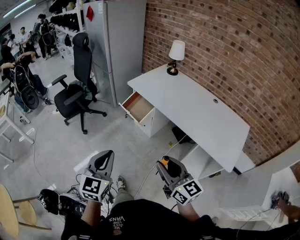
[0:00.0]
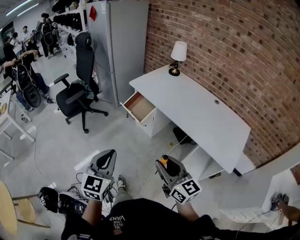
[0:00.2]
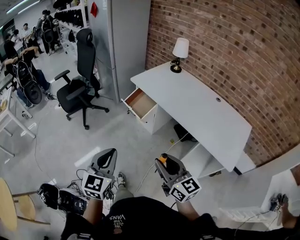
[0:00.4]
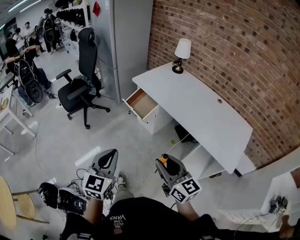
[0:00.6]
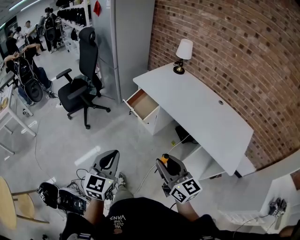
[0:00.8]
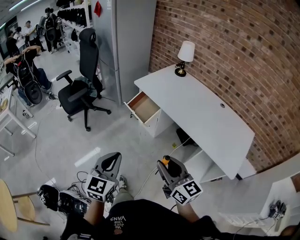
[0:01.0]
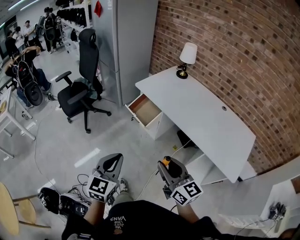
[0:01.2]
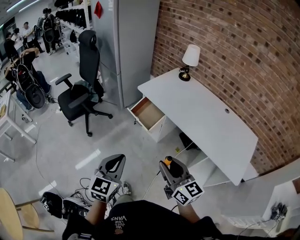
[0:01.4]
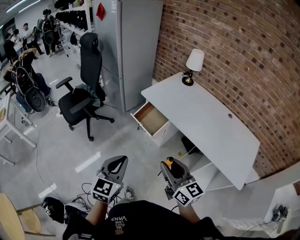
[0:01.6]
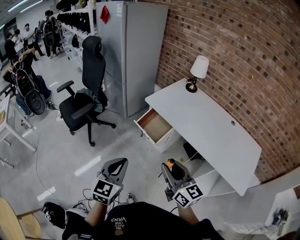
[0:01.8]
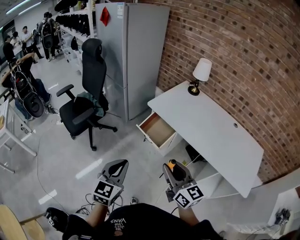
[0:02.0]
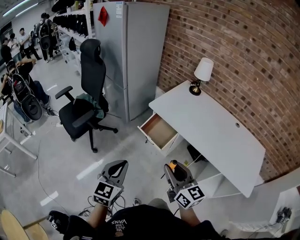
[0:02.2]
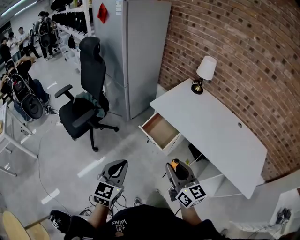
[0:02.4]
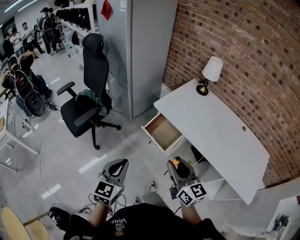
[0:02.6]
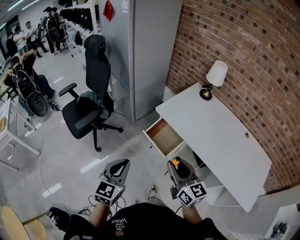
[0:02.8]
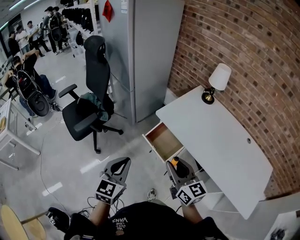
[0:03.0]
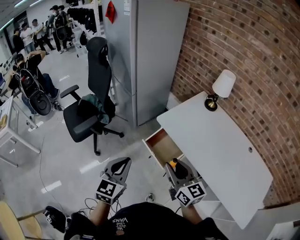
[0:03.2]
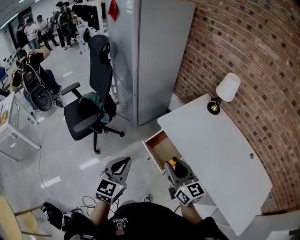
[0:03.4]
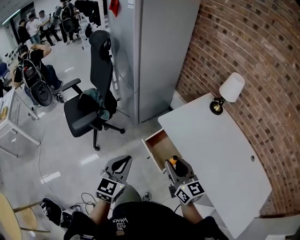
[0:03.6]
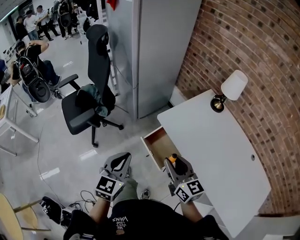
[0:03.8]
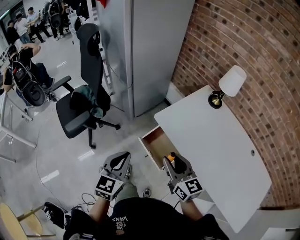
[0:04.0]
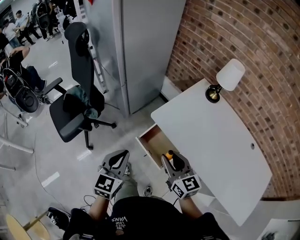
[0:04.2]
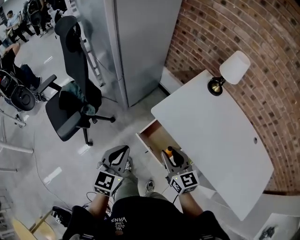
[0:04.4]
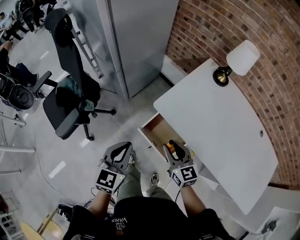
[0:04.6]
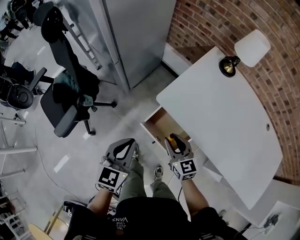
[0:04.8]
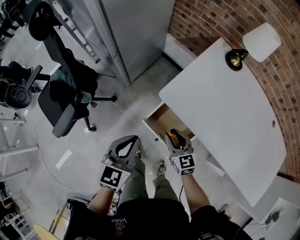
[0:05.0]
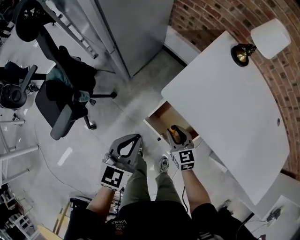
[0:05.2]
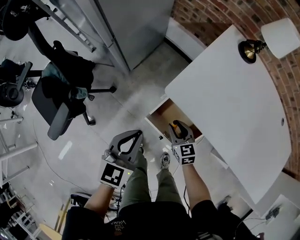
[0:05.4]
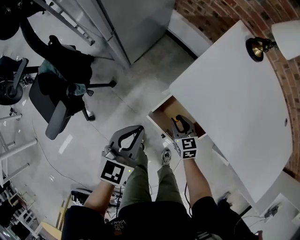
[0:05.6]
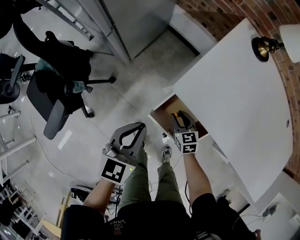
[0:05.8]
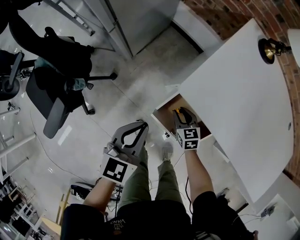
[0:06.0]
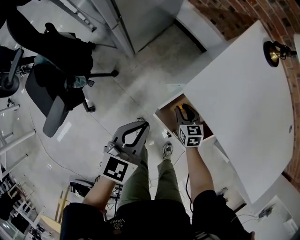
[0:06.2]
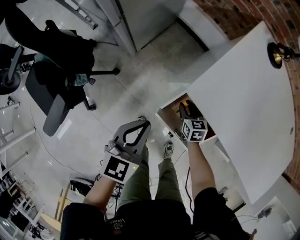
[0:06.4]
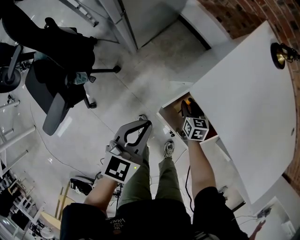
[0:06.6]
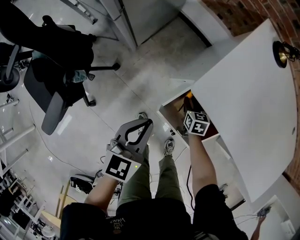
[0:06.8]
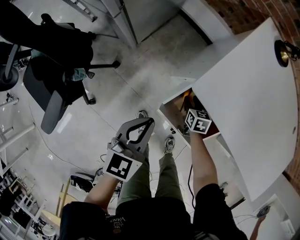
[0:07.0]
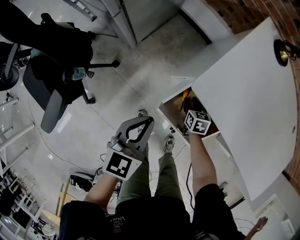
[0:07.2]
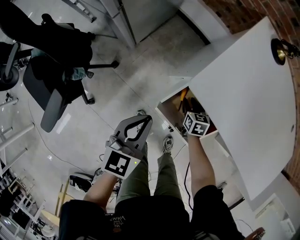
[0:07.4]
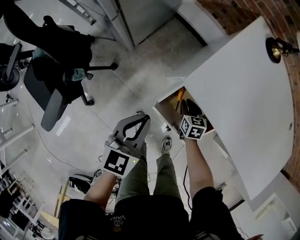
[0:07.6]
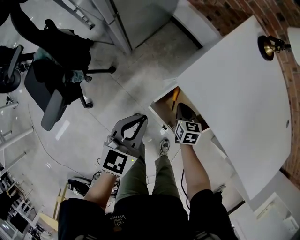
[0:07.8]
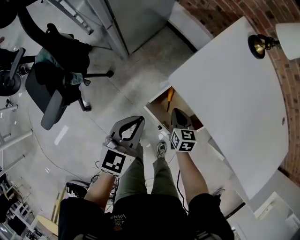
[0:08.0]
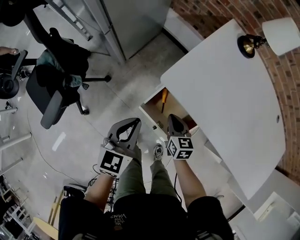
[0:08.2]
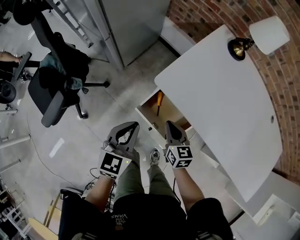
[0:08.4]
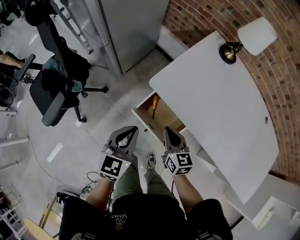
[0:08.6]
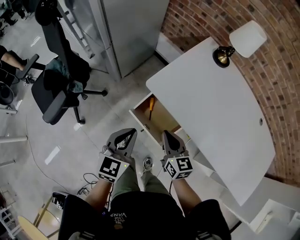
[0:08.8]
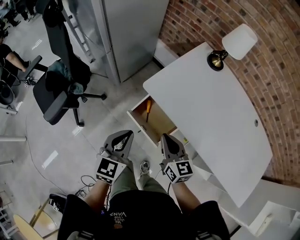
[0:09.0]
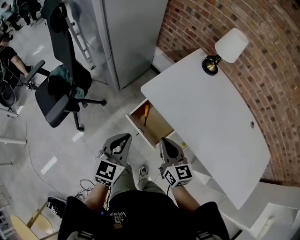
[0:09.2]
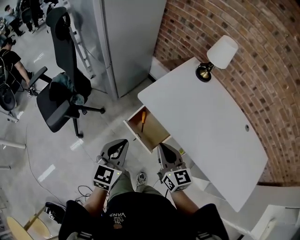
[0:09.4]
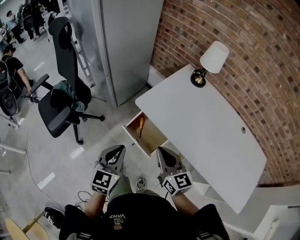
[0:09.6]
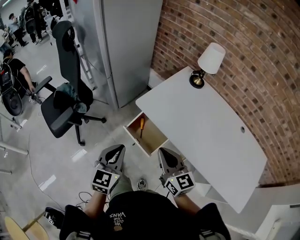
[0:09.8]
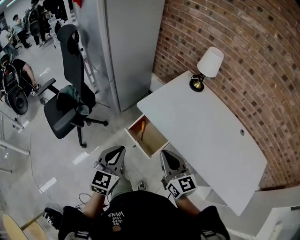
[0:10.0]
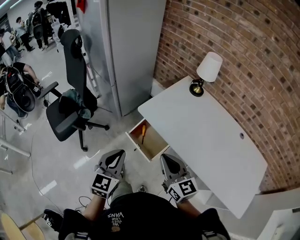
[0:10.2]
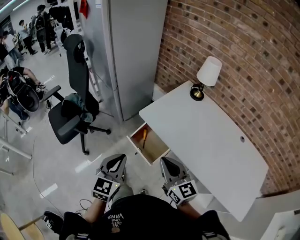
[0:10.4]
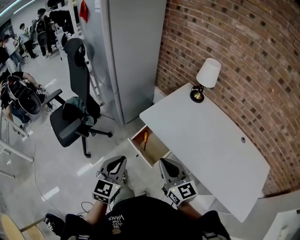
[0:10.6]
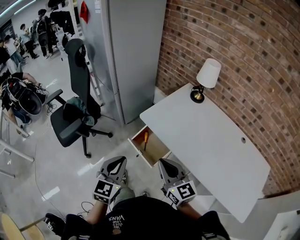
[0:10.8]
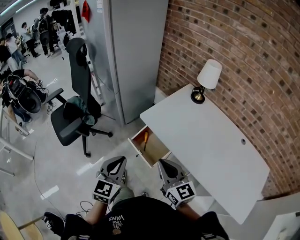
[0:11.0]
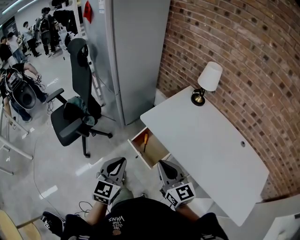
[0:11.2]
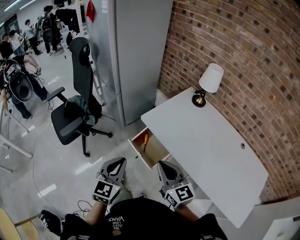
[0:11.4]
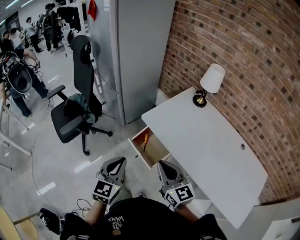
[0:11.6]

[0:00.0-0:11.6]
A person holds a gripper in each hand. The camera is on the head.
0:00.0 to 0:01.4: Both grippers move forward, about 10 cm.
0:01.4 to 0:02.8: The left gripper travels forward and to the left by approximately 25 cm; the right gripper goes some 25 cm forward.
0:02.8 to 0:04.4: The left gripper heads forward, covering approximately 25 cm. The right gripper goes about 30 cm forward and downward.
0:04.4 to 0:05.8: The left gripper goes about 25 cm downward and forward, while the right gripper goes roughly 35 cm downward, and swivels approximately 30 degrees.
0:05.8 to 0:07.2: Both grippers travel together downward, roughly 5 cm. The right gripper changes its angle by approximately 20 degrees.
0:07.2 to 0:08.8: The left gripper is displaced upward, backward and to the right by roughly 20 cm. The right gripper is displaced upward and backward by approximately 35 cm, points its fingers about 30 degrees further upward, and closes up.
0:08.8 to 0:10.2: The right gripper travels upward and backward by roughly 25 cm, and swivels about 20 degrees; the left gripper moves backward and upward, about 20 cm.
0:10.2 to 0:11.6: The grippers stay close to where they were, moving slightly.

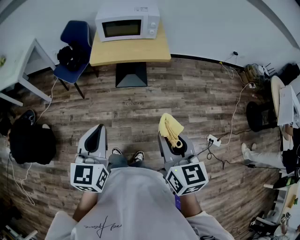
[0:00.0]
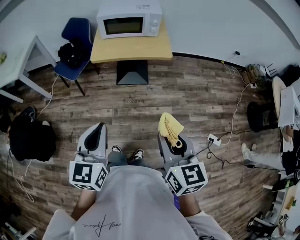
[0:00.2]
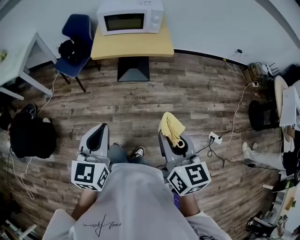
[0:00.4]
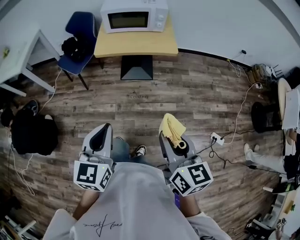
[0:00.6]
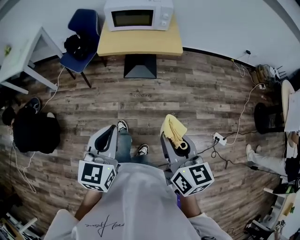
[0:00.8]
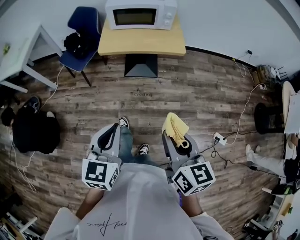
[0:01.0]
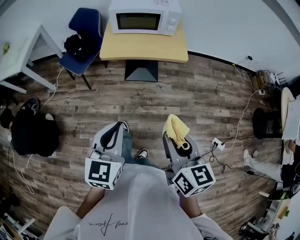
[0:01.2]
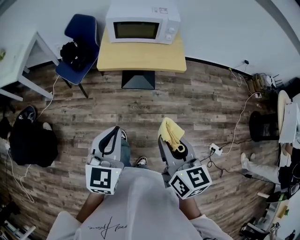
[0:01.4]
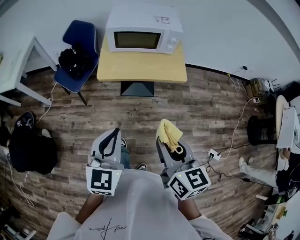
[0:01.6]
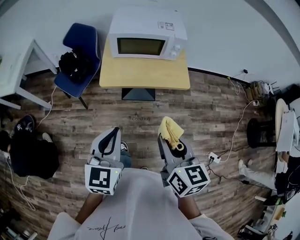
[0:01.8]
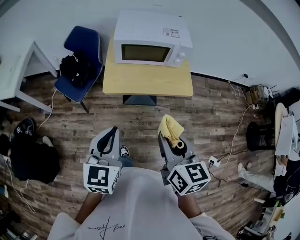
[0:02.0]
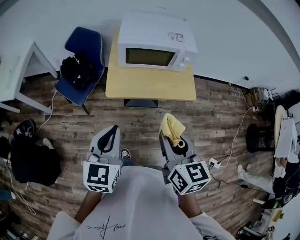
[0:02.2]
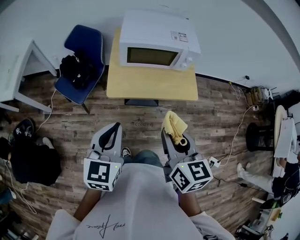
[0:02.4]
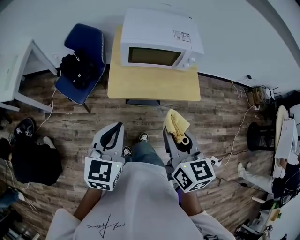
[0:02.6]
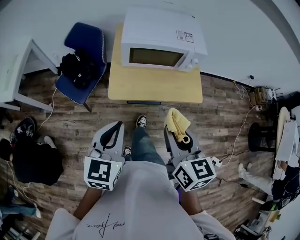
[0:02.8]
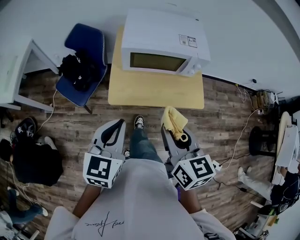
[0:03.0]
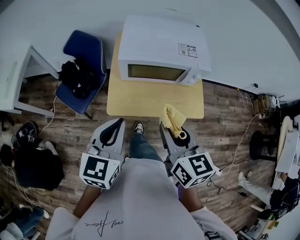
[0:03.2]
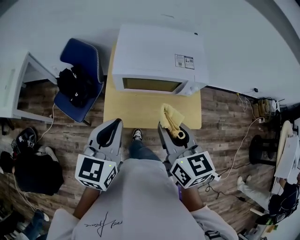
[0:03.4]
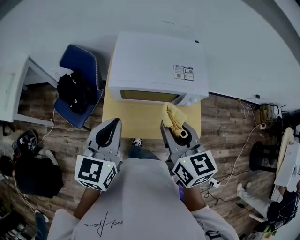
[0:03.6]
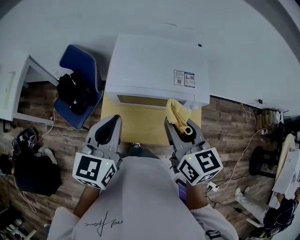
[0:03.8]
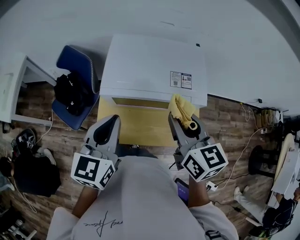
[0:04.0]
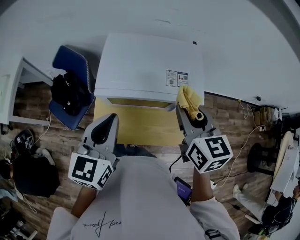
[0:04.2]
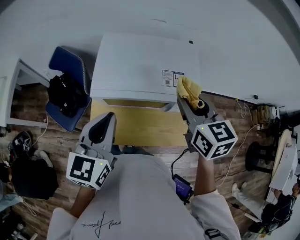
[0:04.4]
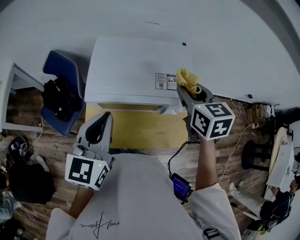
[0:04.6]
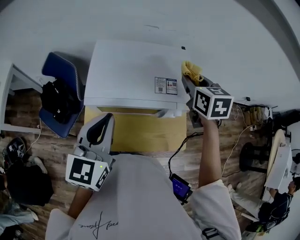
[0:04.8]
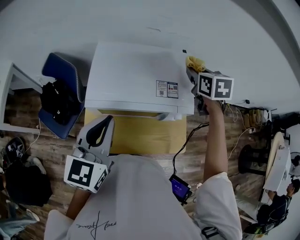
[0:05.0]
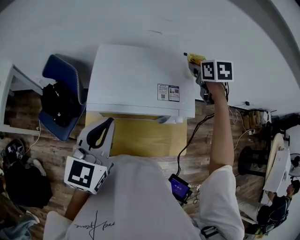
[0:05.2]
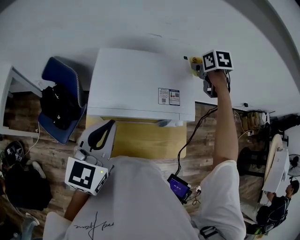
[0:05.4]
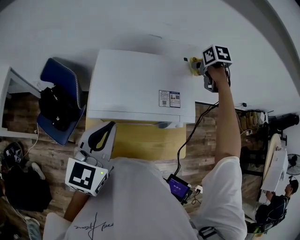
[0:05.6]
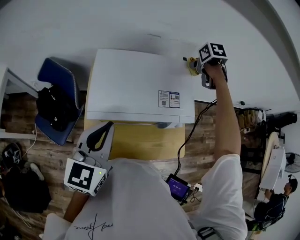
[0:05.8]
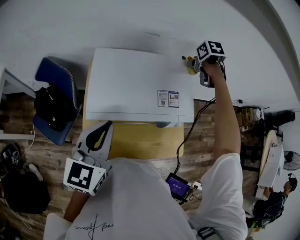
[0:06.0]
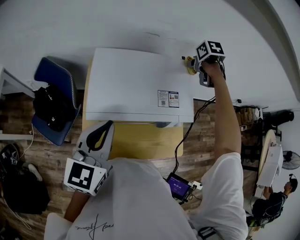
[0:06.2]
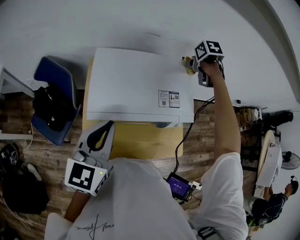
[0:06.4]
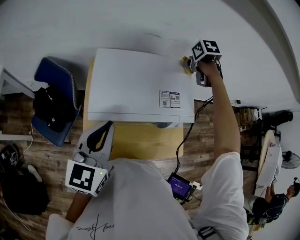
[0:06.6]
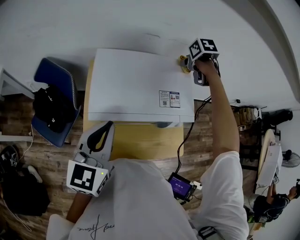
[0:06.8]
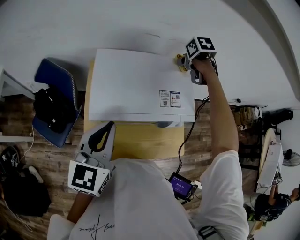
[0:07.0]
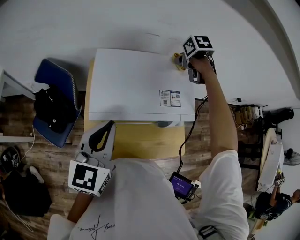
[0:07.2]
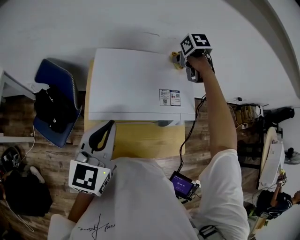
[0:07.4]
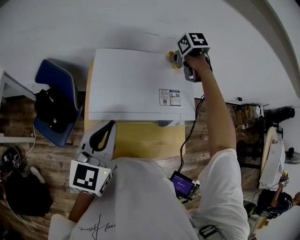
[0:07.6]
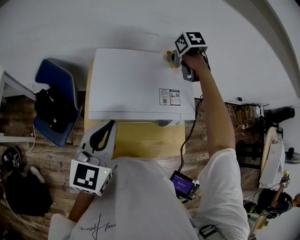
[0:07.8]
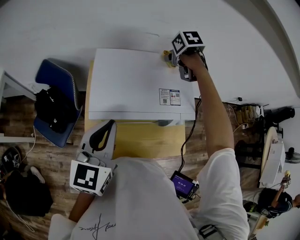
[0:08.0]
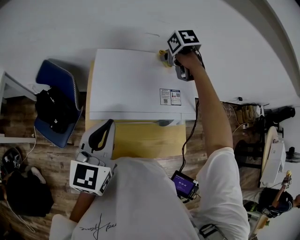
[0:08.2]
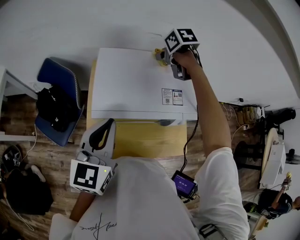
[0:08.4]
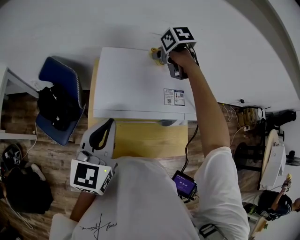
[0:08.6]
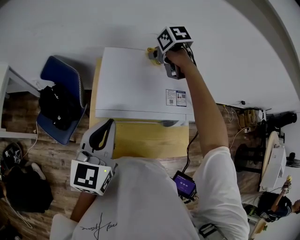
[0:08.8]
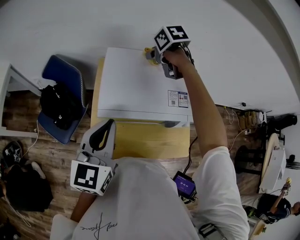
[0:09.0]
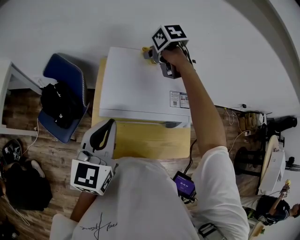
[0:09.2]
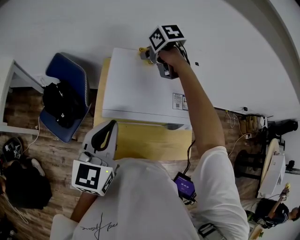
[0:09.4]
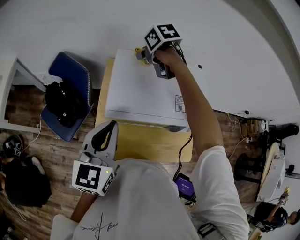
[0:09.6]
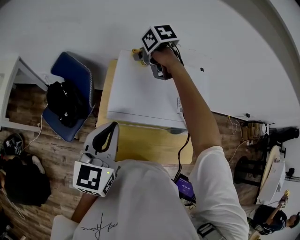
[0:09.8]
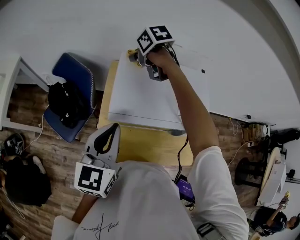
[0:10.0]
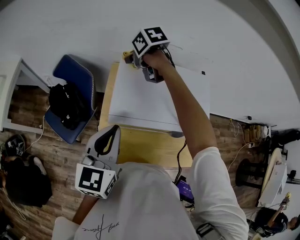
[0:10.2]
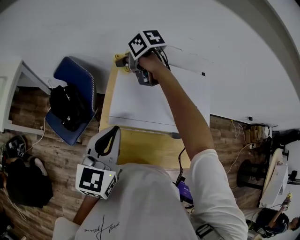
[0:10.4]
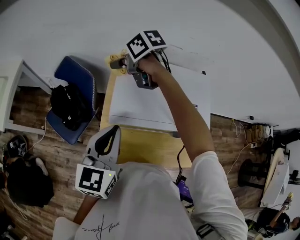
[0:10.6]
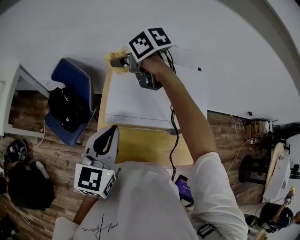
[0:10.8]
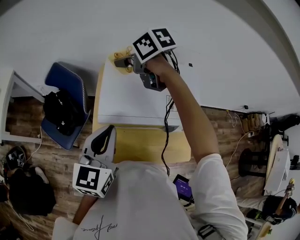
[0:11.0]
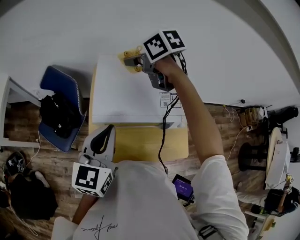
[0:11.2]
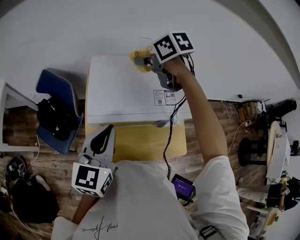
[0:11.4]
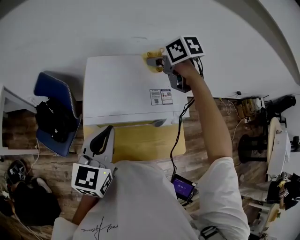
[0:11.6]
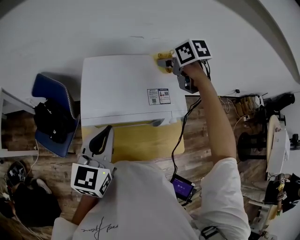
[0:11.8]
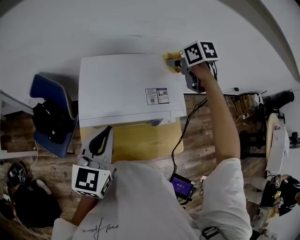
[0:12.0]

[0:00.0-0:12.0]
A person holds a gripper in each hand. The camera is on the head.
0:00.0 to 0:01.6: The left gripper is displaced forward by approximately 20 cm. Meanwhile the right gripper goes approximately 20 cm forward and to the left.
0:01.6 to 0:03.0: Both grippers travel together forward, roughly 25 cm.
0:03.0 to 0:04.4: The left gripper heads forward, covering about 25 cm. The right gripper is displaced forward and to the right by approximately 35 cm.
0:04.4 to 0:06.0: The left gripper goes some 5 cm forward. The right gripper moves forward, approximately 25 cm, and angles its fingers downward, by roughly 50 degrees.
0:06.0 to 0:07.6: The right gripper heads to the left, covering some 10 cm.
0:07.6 to 0:09.0: The right gripper is displaced to the left by some 15 cm.
0:09.0 to 0:10.4: The right gripper goes roughly 20 cm to the left, and turns by about 20 degrees.
0:10.4 to 0:12.0: The left gripper shifts by approximately 10 cm. The right gripper moves roughly 35 cm, and rotates some 30 degrees.
